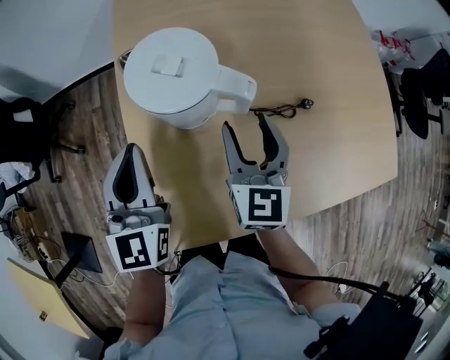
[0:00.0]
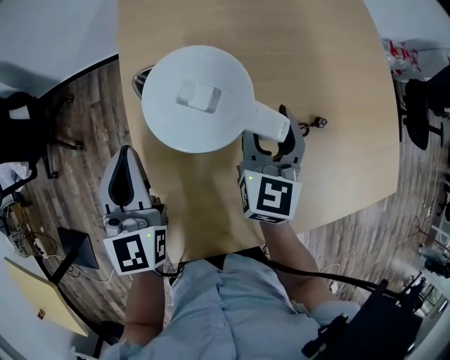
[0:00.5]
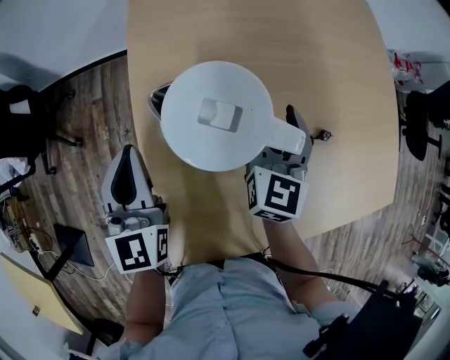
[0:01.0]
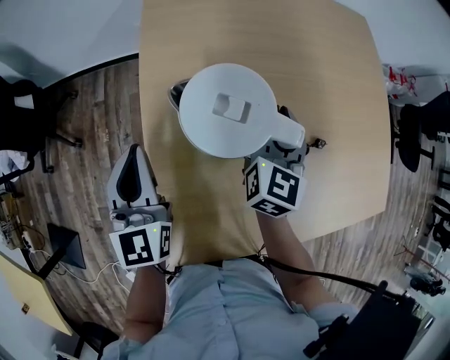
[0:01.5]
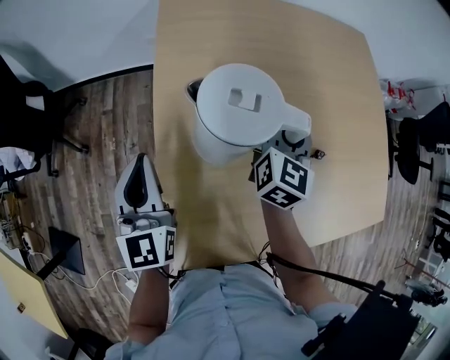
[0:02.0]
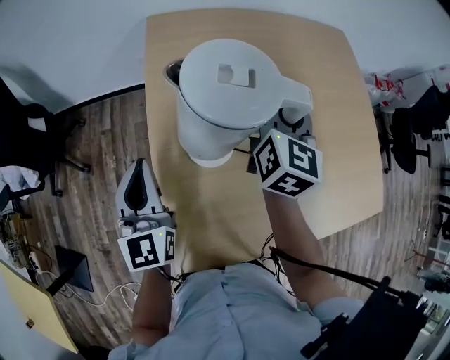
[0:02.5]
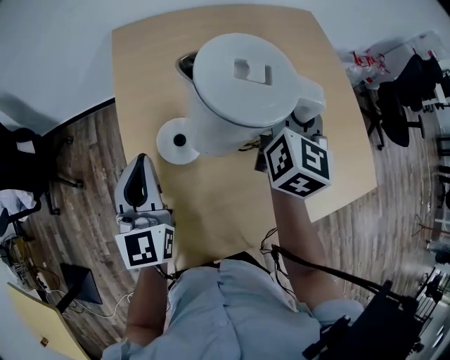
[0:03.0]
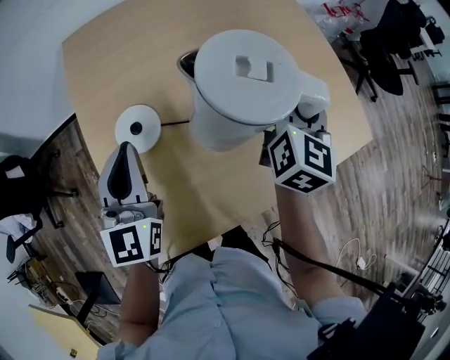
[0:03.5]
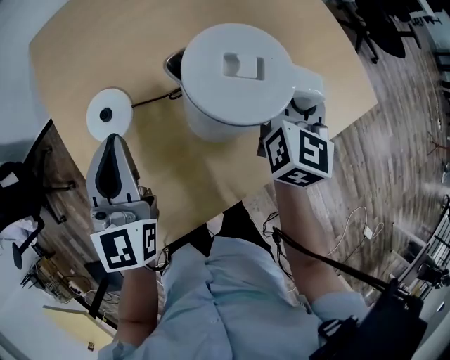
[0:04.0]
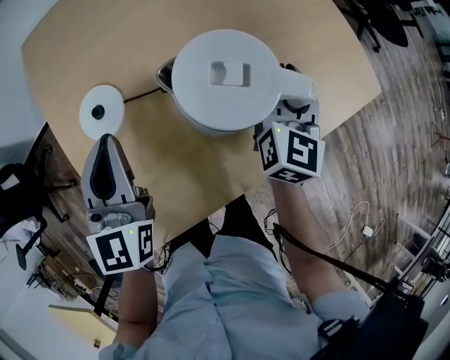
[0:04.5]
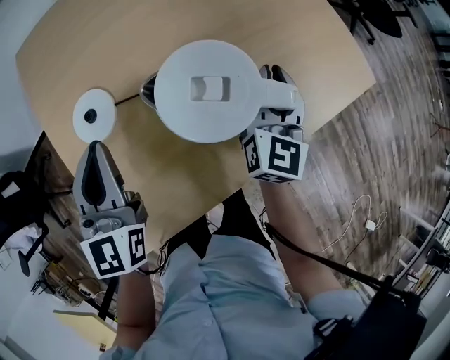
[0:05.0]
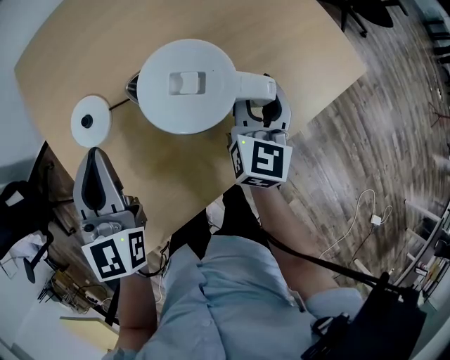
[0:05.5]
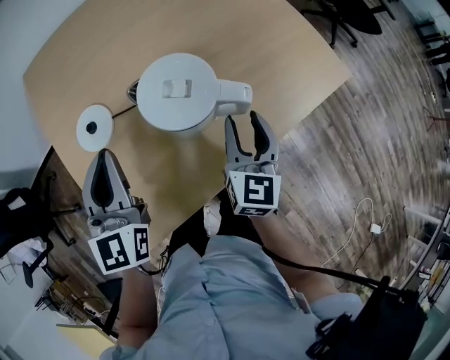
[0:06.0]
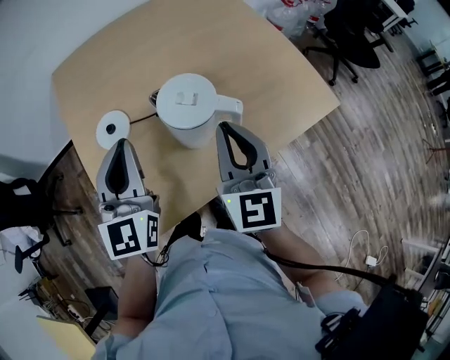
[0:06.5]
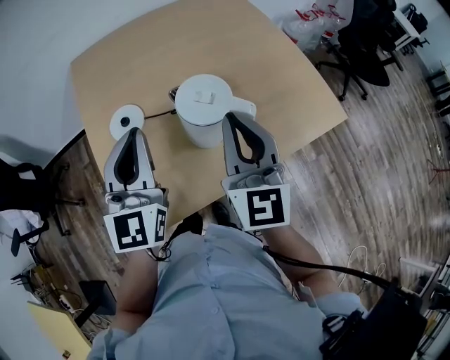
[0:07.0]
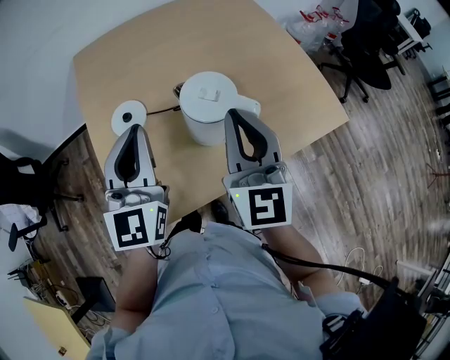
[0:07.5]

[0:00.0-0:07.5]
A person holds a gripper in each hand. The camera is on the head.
0:00.0 to 0:02.0: The right gripper travels forward by some 10 cm, and closes up. The left gripper shifts by about 5 cm.
0:02.0 to 0:04.0: The right gripper goes some 30 cm to the right and backward, and swivels roughly 20 degrees. The left gripper moves to the right, approximately 20 cm, and changes its angle by approximately 30 degrees.
0:04.0 to 0:05.5: The right gripper shifts about 10 cm backward and downward, and opens.
0:05.5 to 0:07.5: The left gripper heads upward, covering roughly 10 cm, while the right gripper travels upward and to the left by approximately 20 cm, rotates approximately 30 degrees, and closes up.

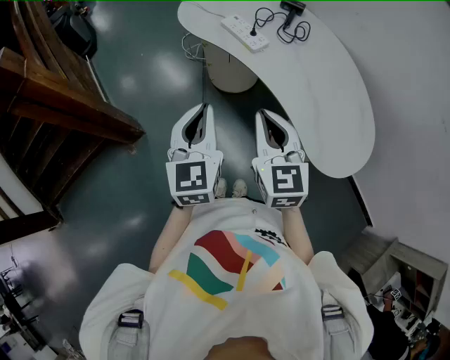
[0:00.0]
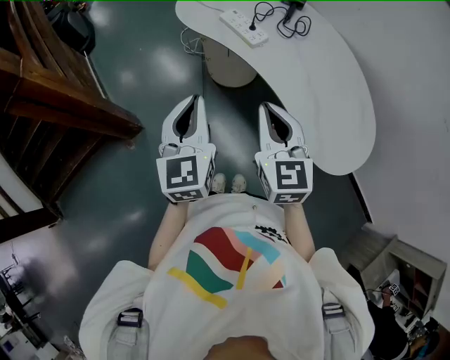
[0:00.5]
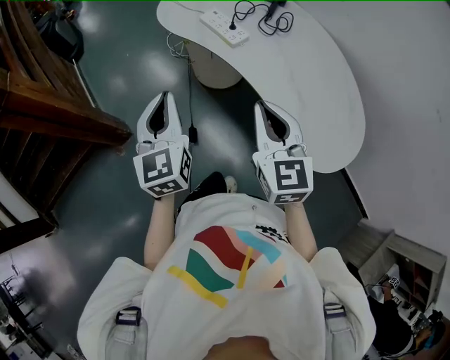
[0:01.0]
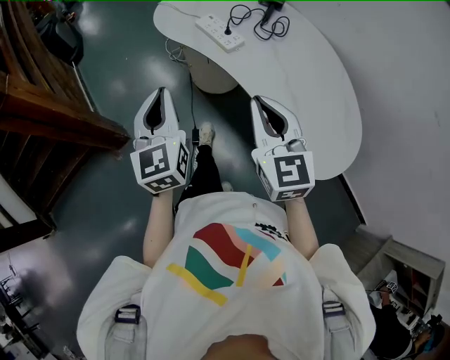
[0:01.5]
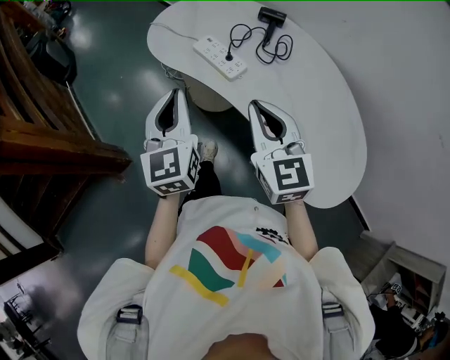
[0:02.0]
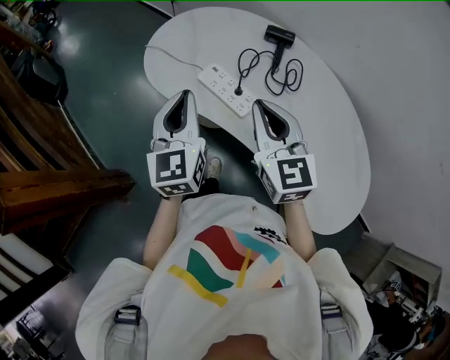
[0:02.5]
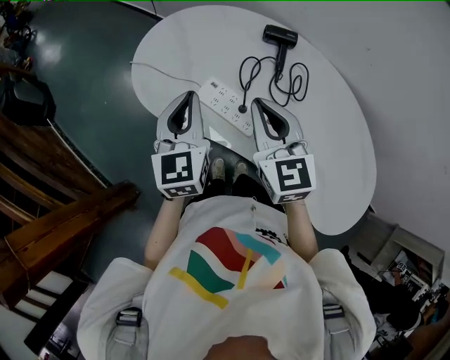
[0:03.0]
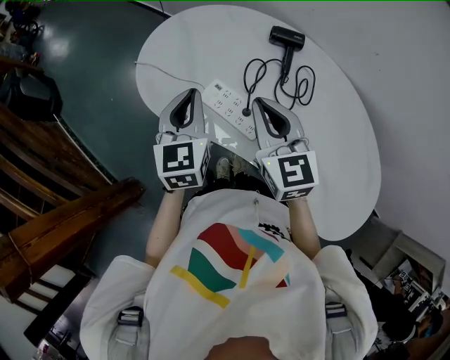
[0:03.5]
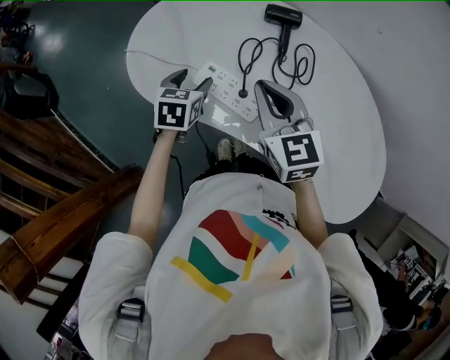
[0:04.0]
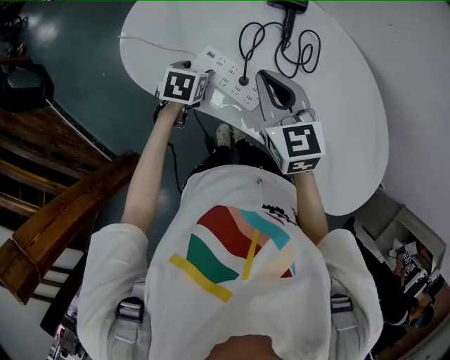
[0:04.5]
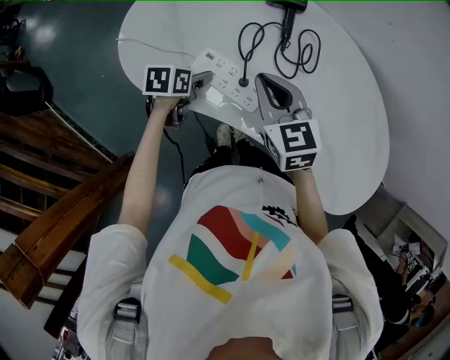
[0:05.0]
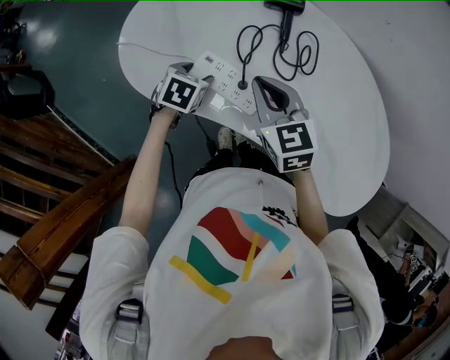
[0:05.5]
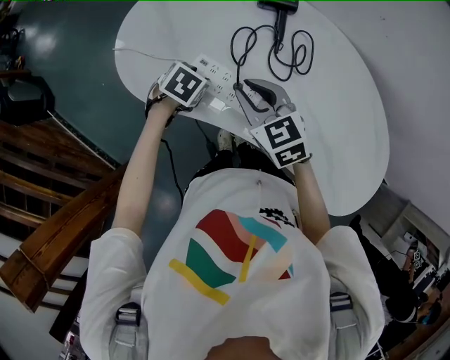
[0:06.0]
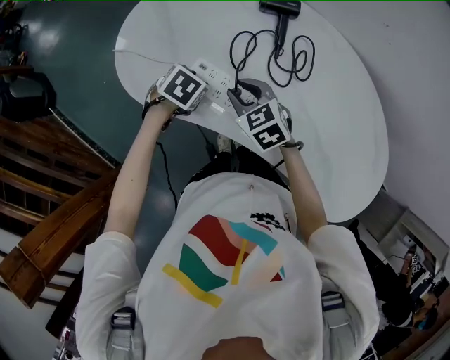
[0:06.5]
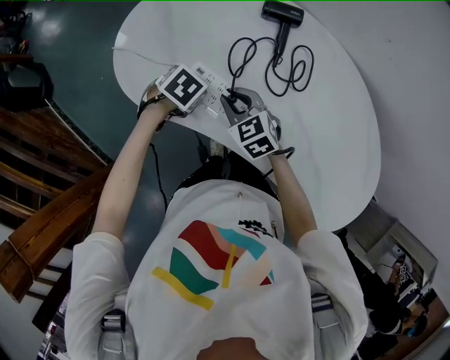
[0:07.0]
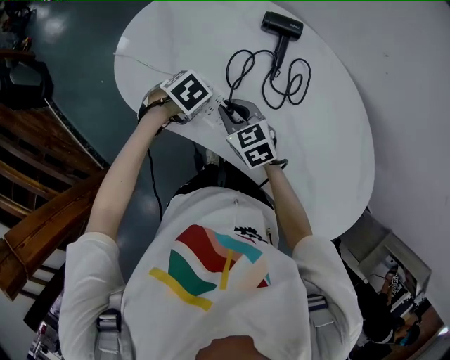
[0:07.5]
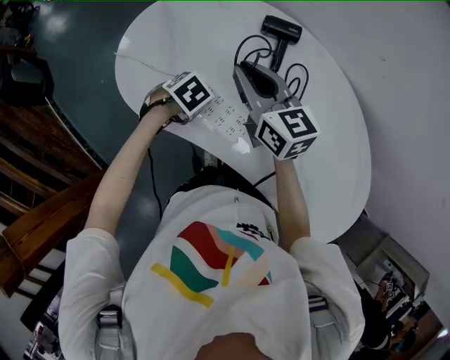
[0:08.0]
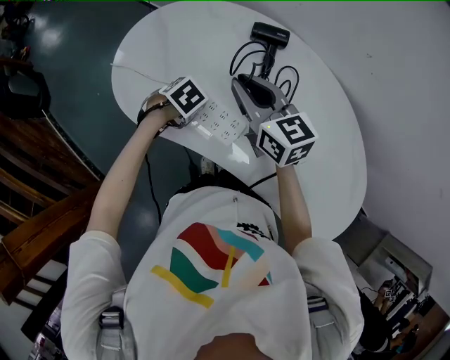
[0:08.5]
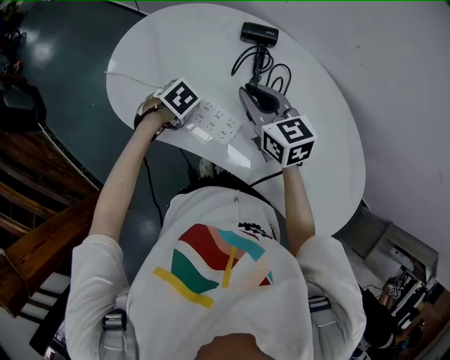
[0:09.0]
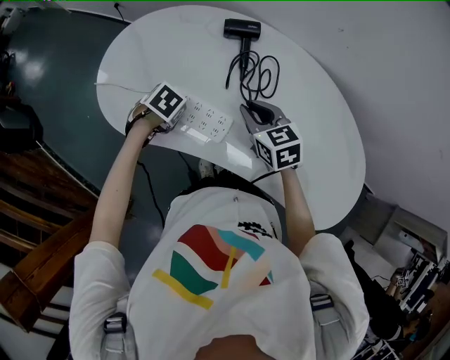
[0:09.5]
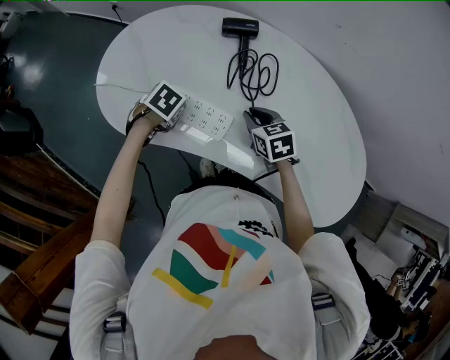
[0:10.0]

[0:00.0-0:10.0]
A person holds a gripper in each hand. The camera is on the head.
0:00.0 to 0:02.0: The left gripper heads forward, covering approximately 20 cm; the right gripper is displaced forward and to the right by about 15 cm.
0:02.0 to 0:04.0: The left gripper is displaced forward and downward by about 35 cm, tilts its fingers about 40 degrees downward, and opens up; the right gripper heads forward, covering approximately 25 cm.
0:04.0 to 0:06.0: Both grippers move downward, approximately 10 cm. The left gripper changes its angle by some 30 degrees.
0:06.0 to 0:08.0: The right gripper ends up approximately 10 cm from where it was, and swivels some 30 degrees.
0:08.0 to 0:10.0: The right gripper travels downward by about 15 cm, and tilts its fingers roughly 40 degrees downward.

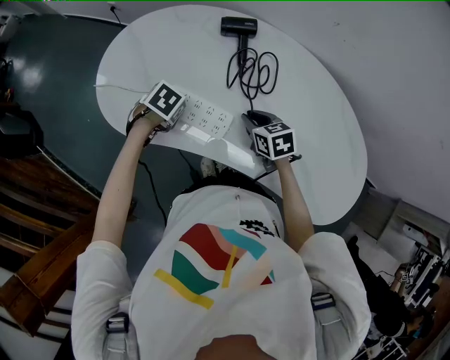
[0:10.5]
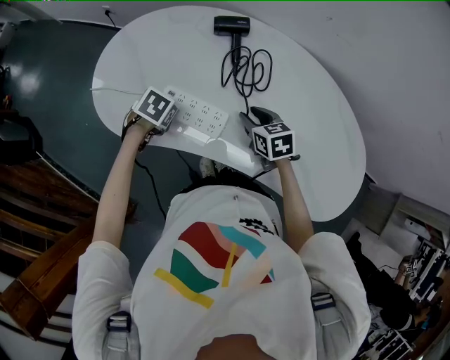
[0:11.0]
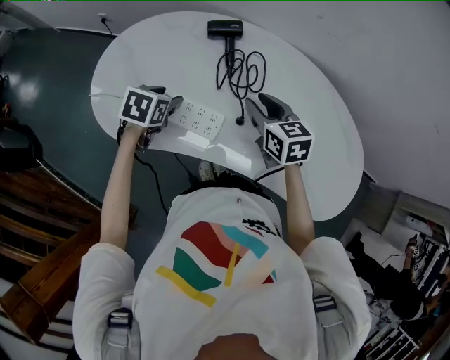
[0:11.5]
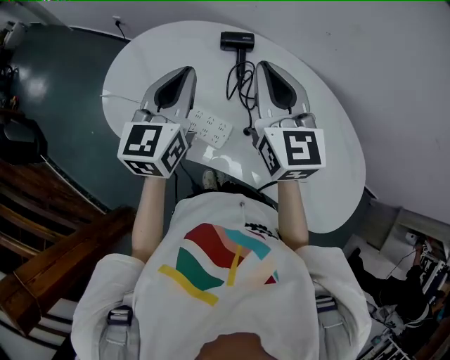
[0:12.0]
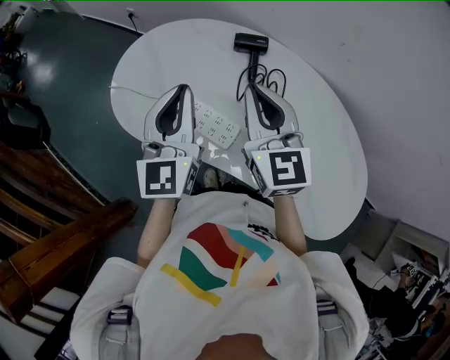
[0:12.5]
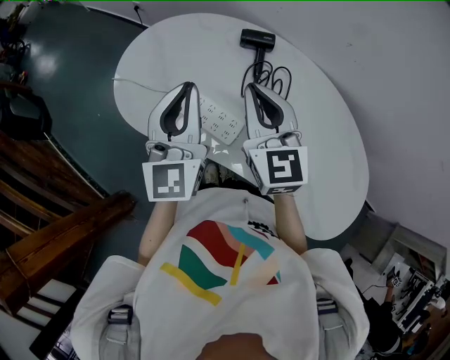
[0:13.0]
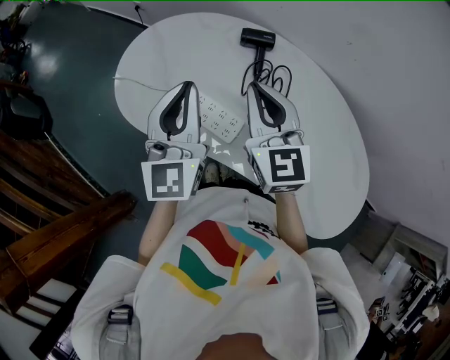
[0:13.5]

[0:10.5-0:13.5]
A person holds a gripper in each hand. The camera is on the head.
0:10.5 to 0:12.0: The grippers both shift upward by some 30 cm. The right gripper tips its fingers upward by some 40 degrees. The left gripper angles its fingers upward, by roughly 70 degrees, and closes its fingers.
0:12.0 to 0:13.5: The left gripper shifts roughly 5 cm backward, and turns by some 20 degrees; the right gripper shifts about 5 cm to the left.

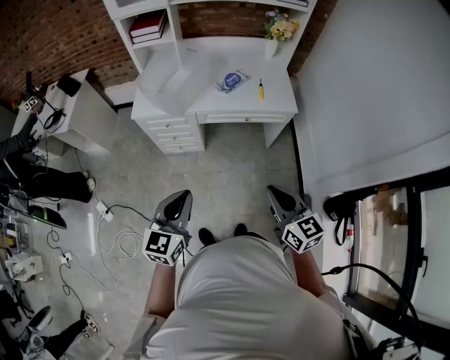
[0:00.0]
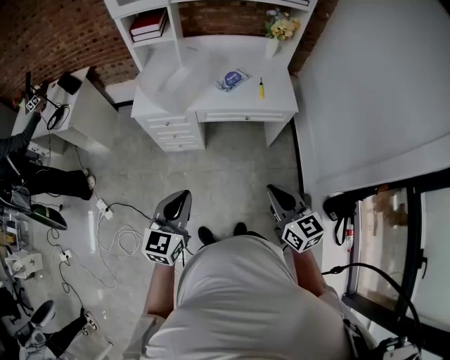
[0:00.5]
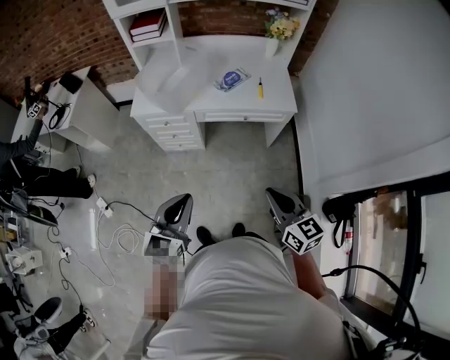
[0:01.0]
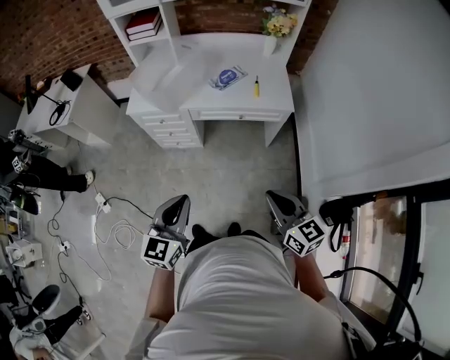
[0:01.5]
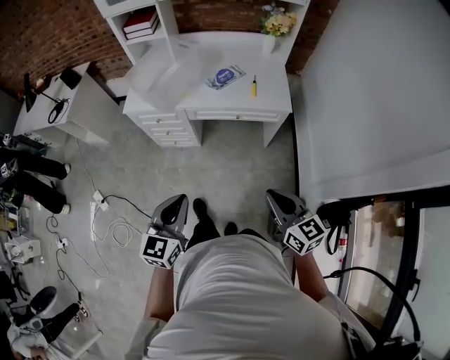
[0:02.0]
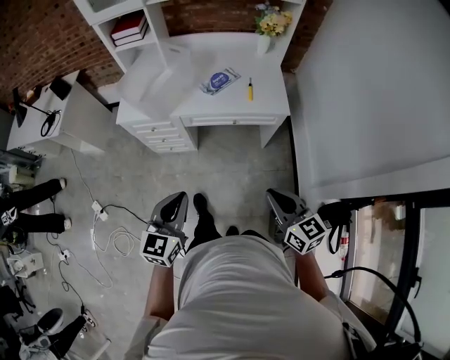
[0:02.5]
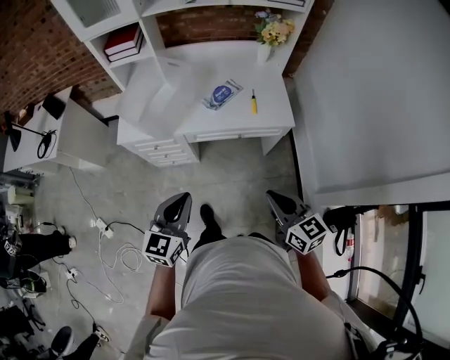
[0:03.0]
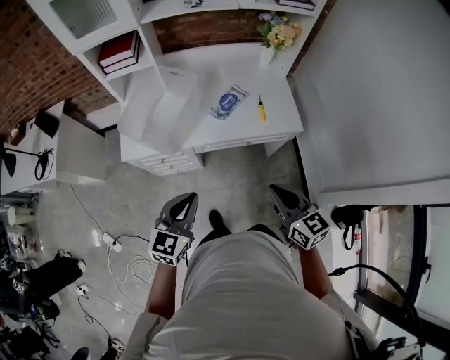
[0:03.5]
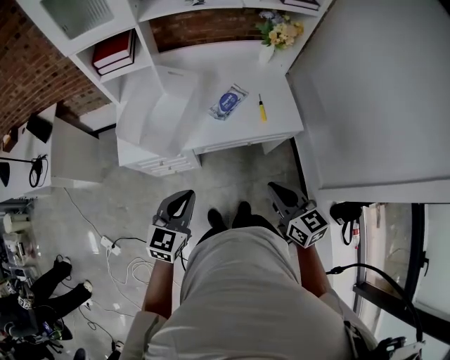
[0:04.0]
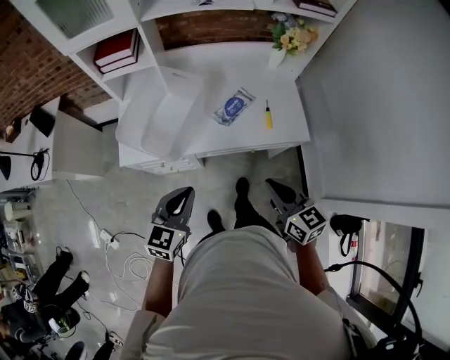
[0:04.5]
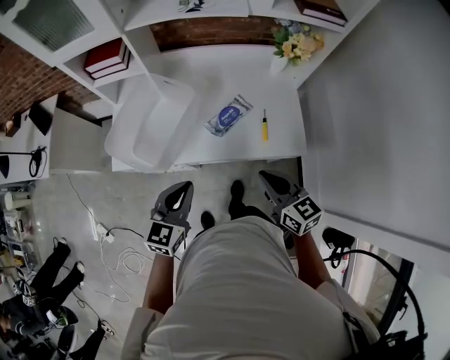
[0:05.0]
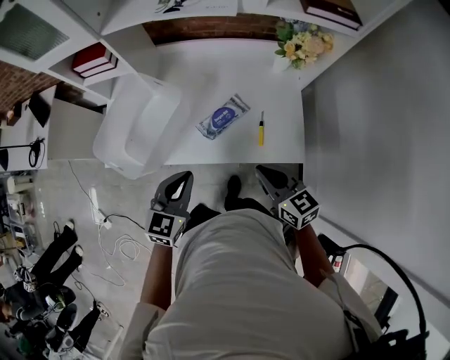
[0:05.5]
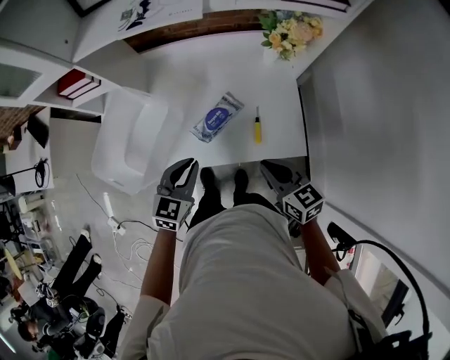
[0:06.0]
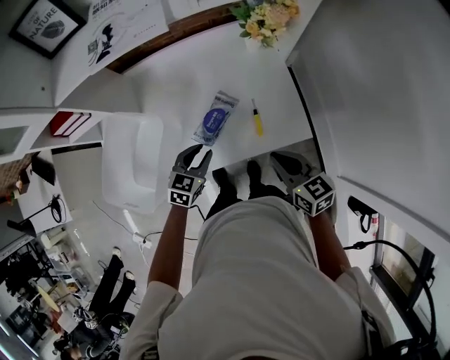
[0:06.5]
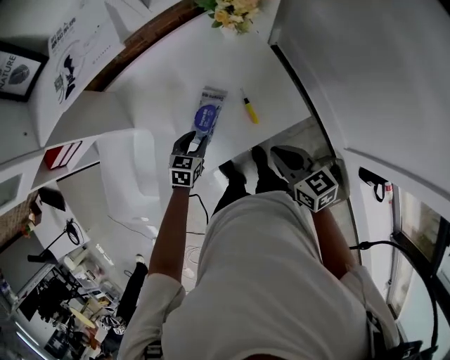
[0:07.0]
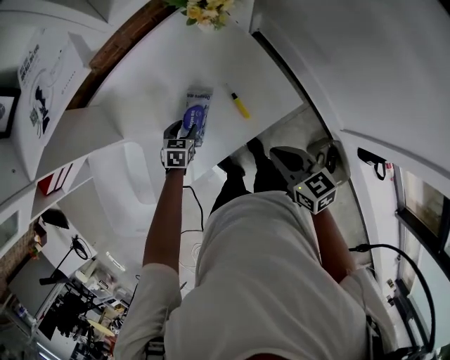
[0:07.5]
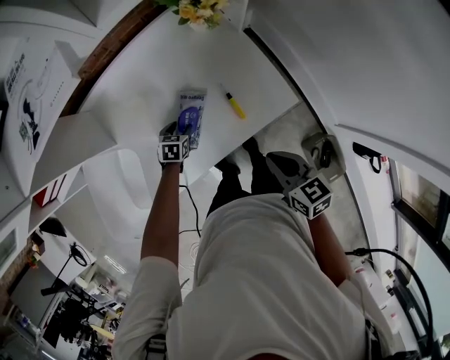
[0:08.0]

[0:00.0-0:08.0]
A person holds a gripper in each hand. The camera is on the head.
0:00.0 to 0:02.0: The grippers both shift to the right by some 10 cm.
0:02.0 to 0:04.0: Both grippers travel together forward and to the left, about 30 cm. The left gripper changes its angle by some 20 degrees.
0:04.0 to 0:06.0: Both grippers move forward and to the right, about 30 cm.
0:06.0 to 0:08.0: The left gripper shifts about 30 cm downward, points its fingers about 30 degrees further downward, and opens its fingers. The right gripper shifts roughly 5 cm downward, and swivels roughly 30 degrees.
